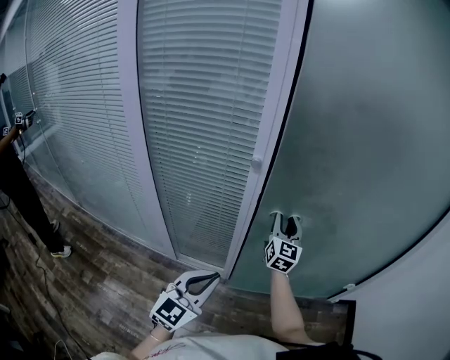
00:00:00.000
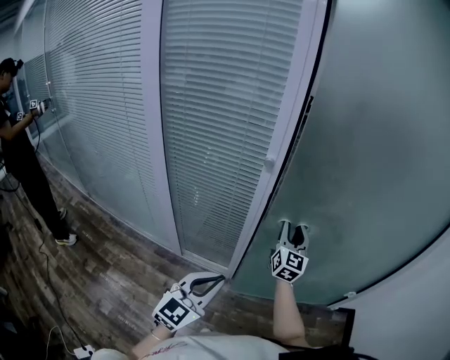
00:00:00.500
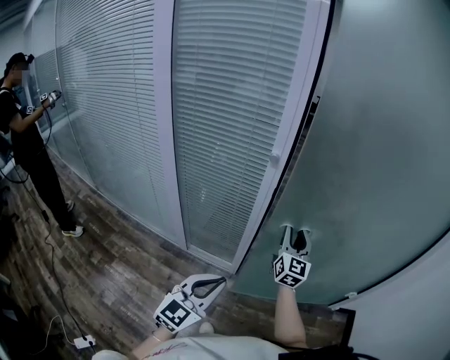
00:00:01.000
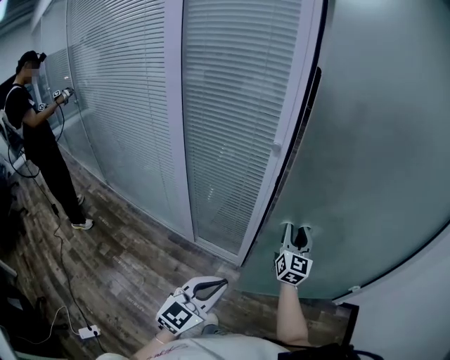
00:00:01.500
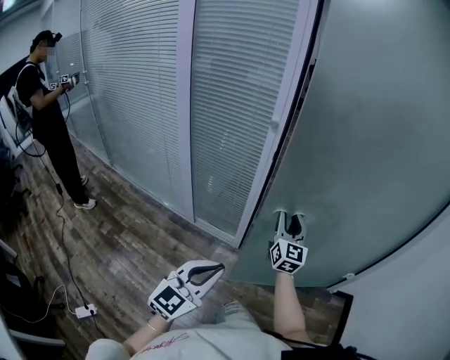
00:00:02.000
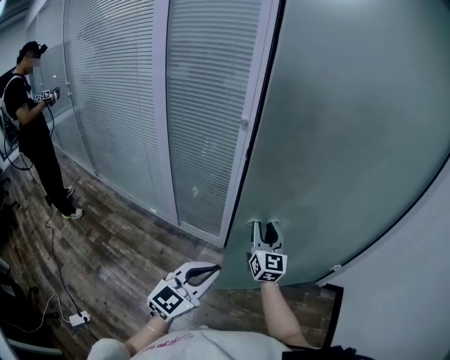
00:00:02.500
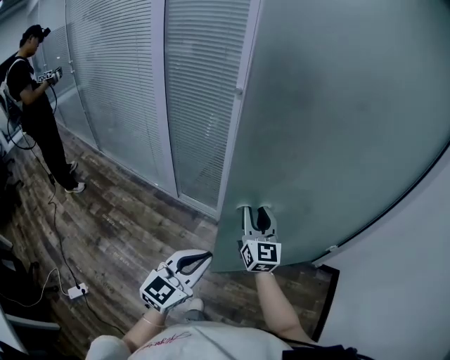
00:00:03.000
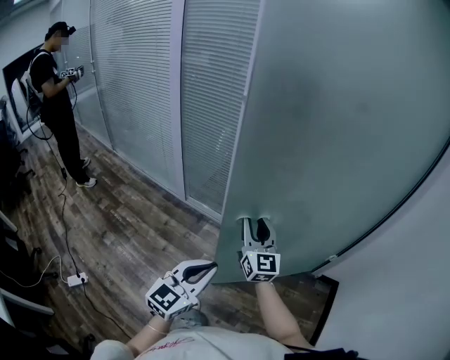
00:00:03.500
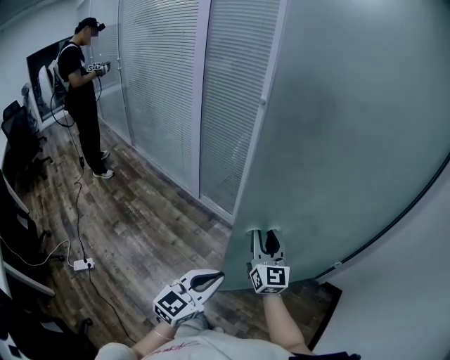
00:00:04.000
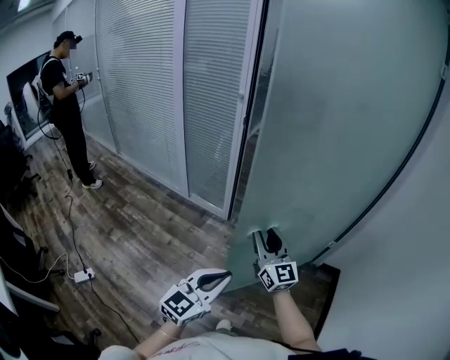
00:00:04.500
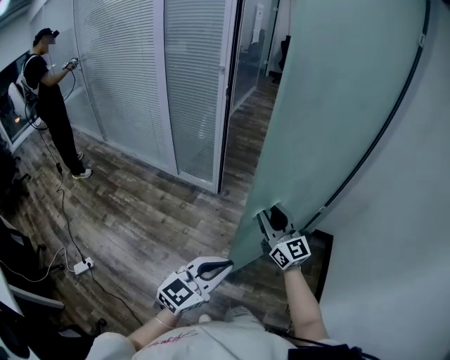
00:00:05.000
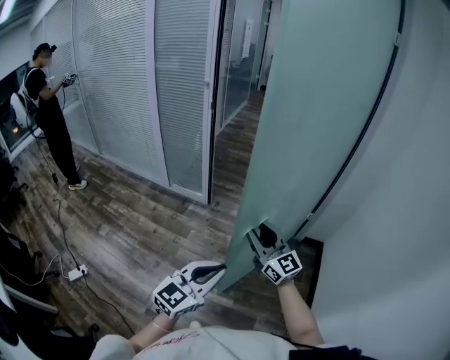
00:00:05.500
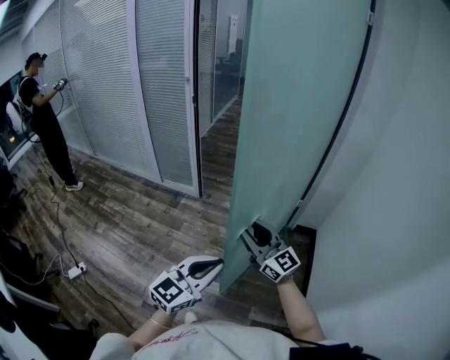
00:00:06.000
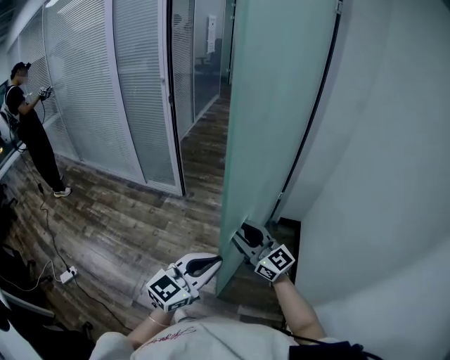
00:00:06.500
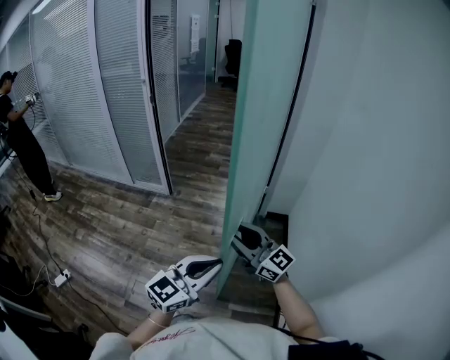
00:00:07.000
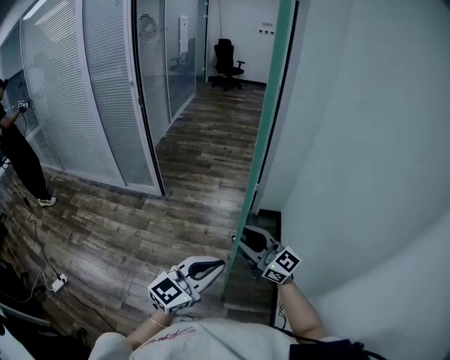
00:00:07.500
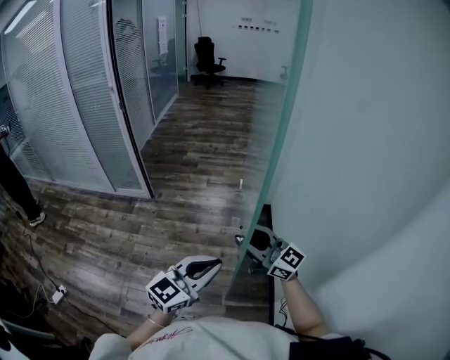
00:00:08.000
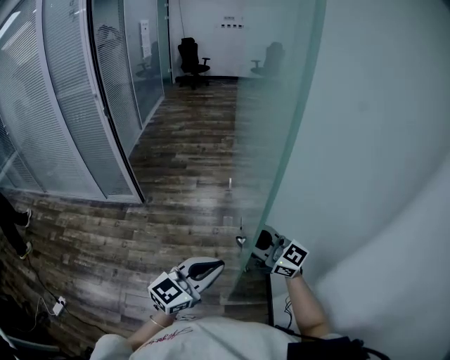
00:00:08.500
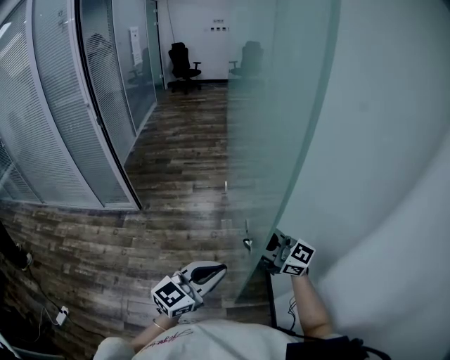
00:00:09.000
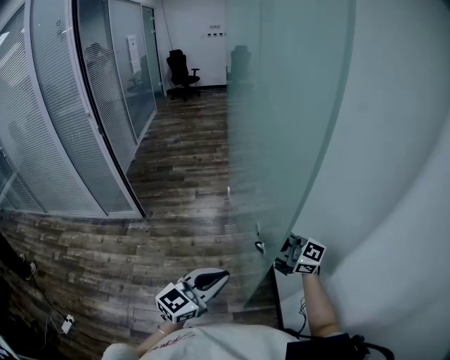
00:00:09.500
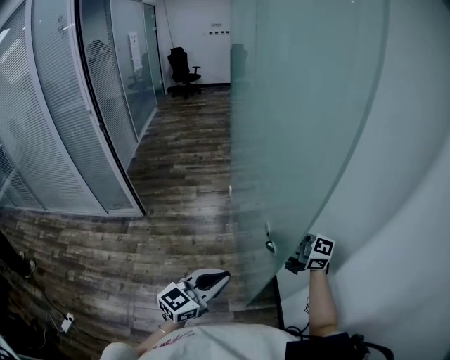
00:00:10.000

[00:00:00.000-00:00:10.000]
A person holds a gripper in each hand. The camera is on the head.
00:00:00.000 to 00:00:02.000: The left gripper heads backward and to the right, covering roughly 20 cm; the right gripper shifts about 20 cm backward.
00:00:02.000 to 00:00:04.000: The left gripper goes some 25 cm backward and to the right, while the right gripper shifts about 25 cm backward, and changes its angle by roughly 20 degrees.
00:00:04.000 to 00:00:06.000: The two grippers go some 30 cm backward and to the right. The left gripper swivels about 20 degrees.
00:00:06.000 to 00:00:08.000: The right gripper is displaced to the right and backward by about 25 cm. The left gripper travels to the right by about 20 cm.
00:00:08.000 to 00:00:10.000: The right gripper goes some 10 cm to the right.

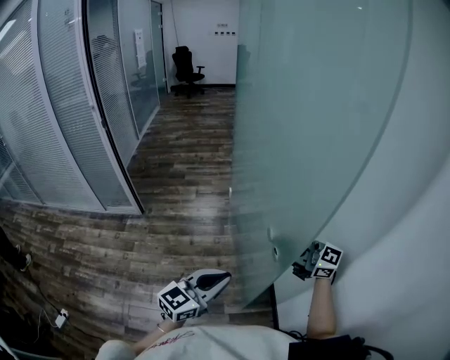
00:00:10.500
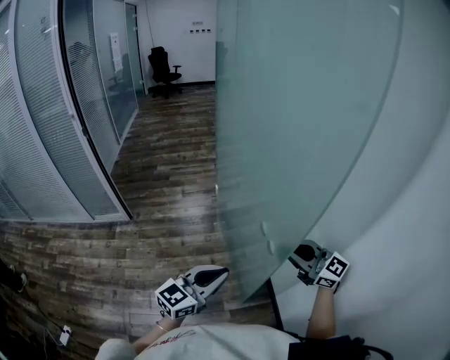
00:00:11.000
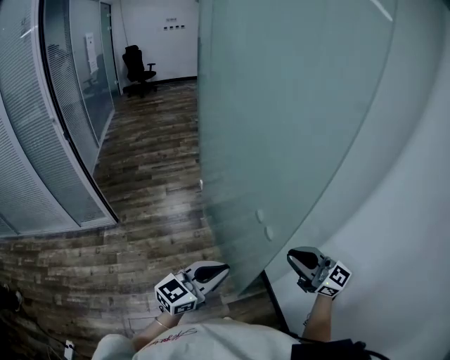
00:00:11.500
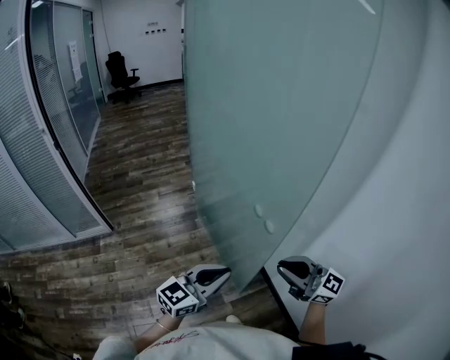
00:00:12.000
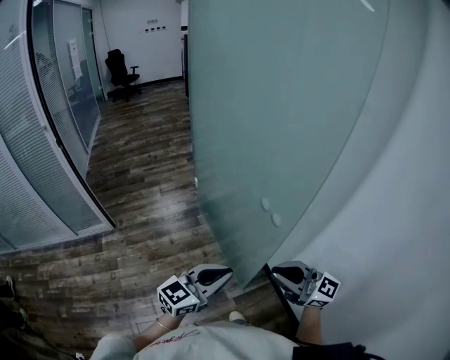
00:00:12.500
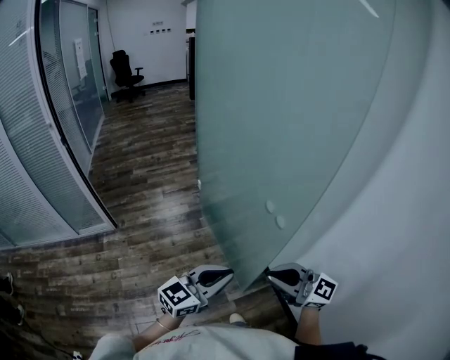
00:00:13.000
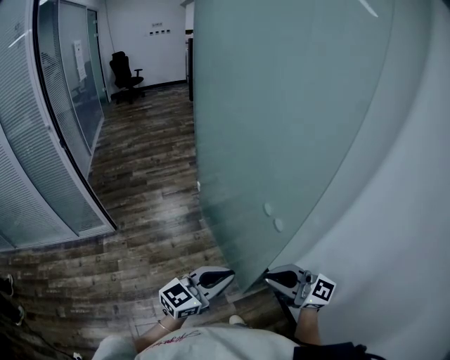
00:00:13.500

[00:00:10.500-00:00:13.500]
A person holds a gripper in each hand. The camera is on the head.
00:00:10.500 to 00:00:12.000: The right gripper moves backward, some 15 cm, changes its angle by about 20 degrees, and closes its fingers; the left gripper turns by roughly 20 degrees.
00:00:12.000 to 00:00:13.500: The right gripper moves about 10 cm.

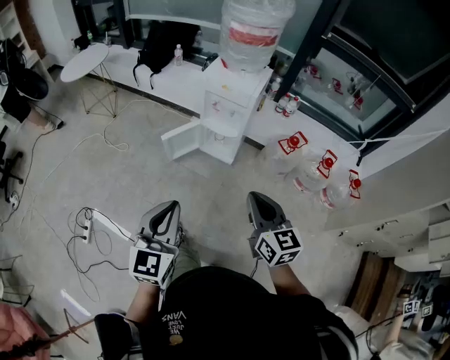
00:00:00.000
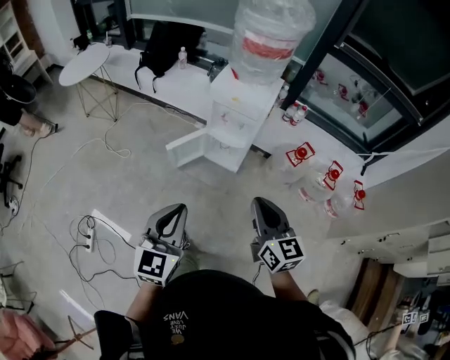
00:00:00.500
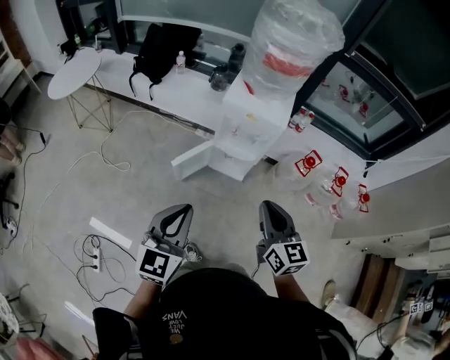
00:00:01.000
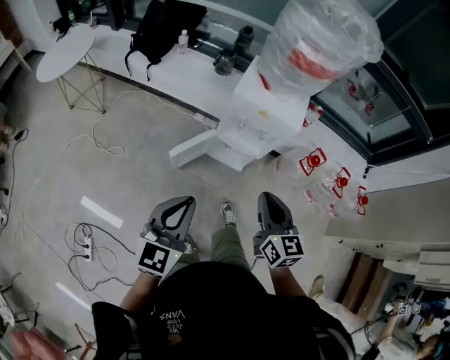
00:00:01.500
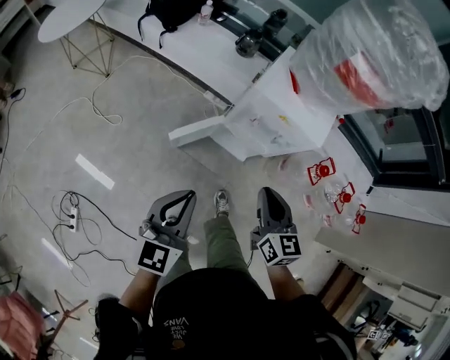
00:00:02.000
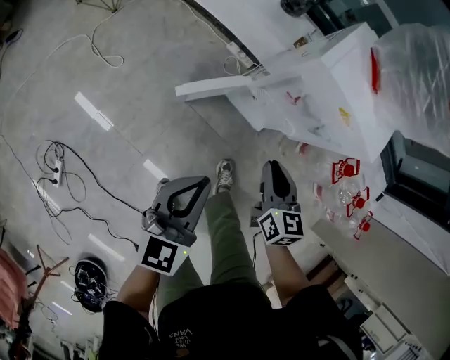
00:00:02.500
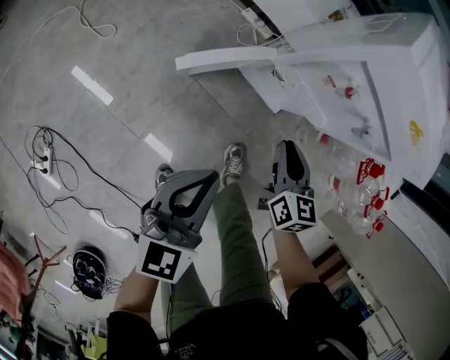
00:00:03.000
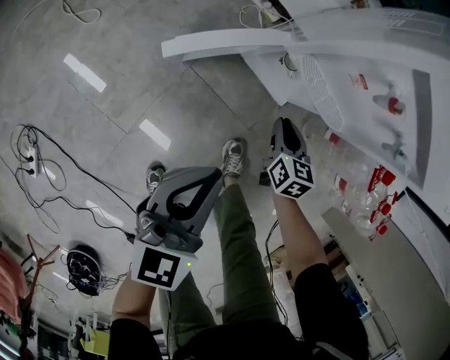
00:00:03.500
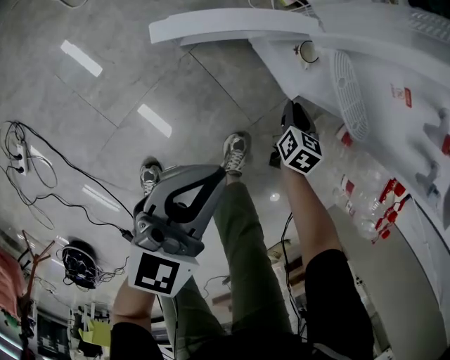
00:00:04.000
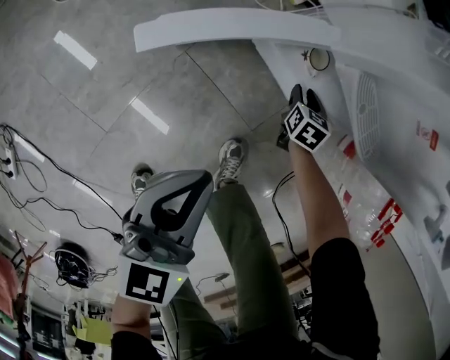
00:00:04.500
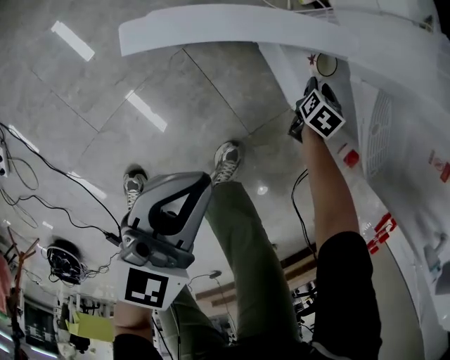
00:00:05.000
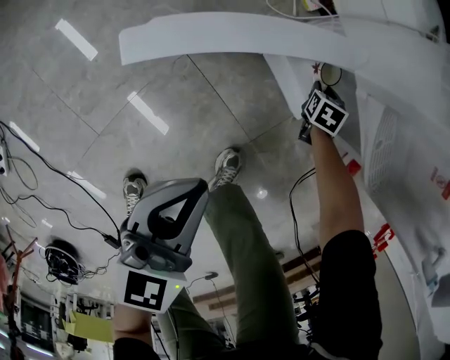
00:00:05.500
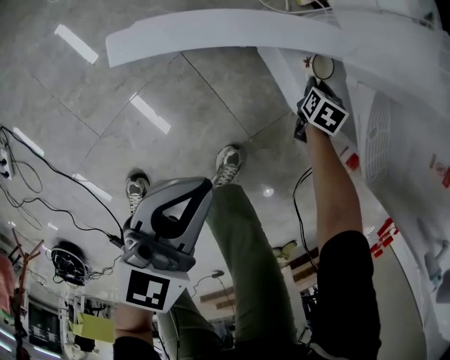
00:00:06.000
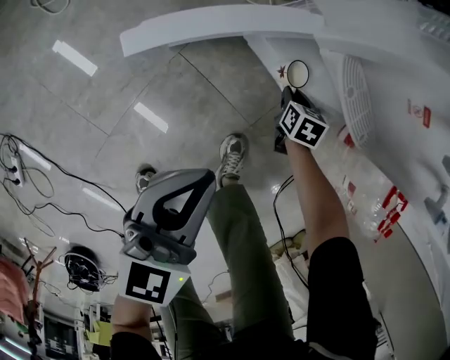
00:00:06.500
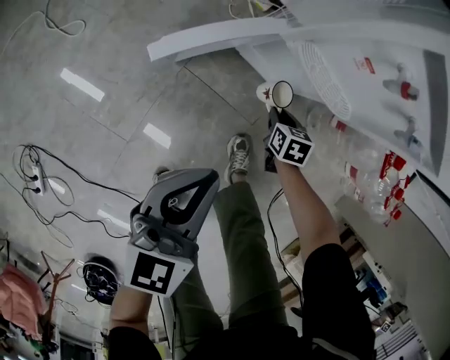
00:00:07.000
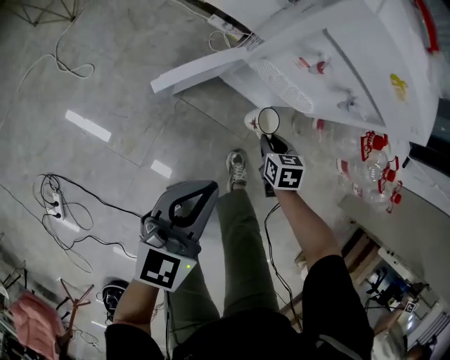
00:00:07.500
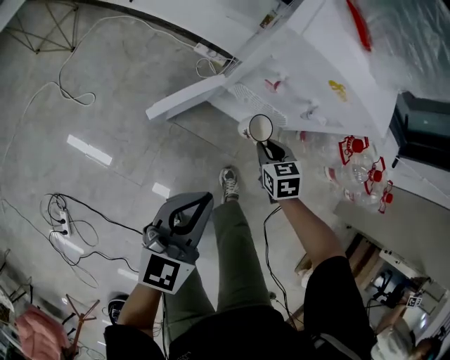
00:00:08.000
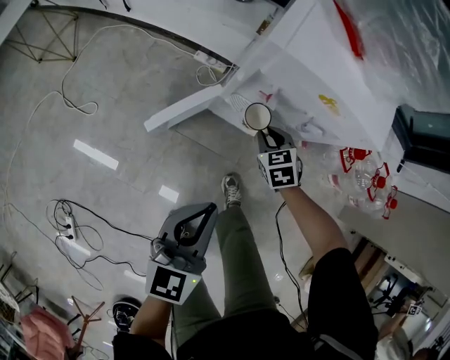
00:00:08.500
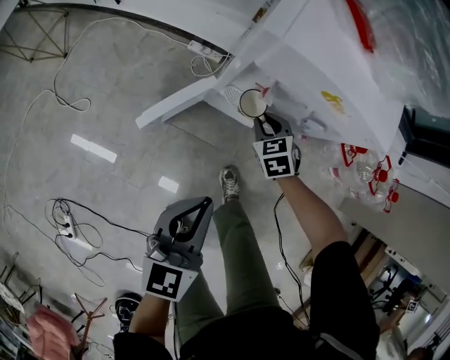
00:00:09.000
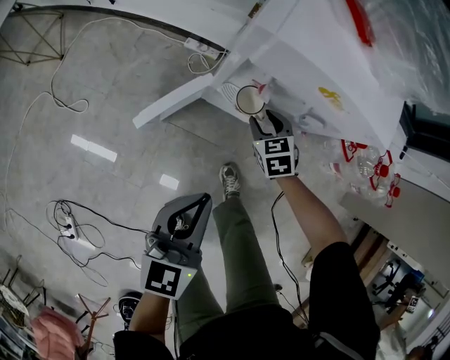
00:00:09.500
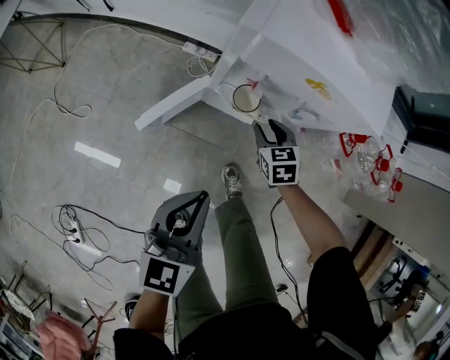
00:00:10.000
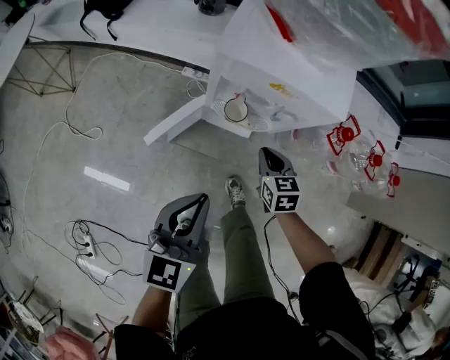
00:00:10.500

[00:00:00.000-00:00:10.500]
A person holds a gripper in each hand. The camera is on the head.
00:00:00.000 to 00:00:02.000: Both grippers move forward and to the left, roughly 40 cm.
00:00:02.000 to 00:00:04.000: The grippers both shift downward by about 60 cm. The right gripper tilts its fingers about 30 degrees downward.
00:00:04.000 to 00:00:06.500: The right gripper shifts approximately 10 cm downward, and reaches about 15 cm forward, then returns.
00:00:06.500 to 00:00:08.500: The grippers both shift upward by some 35 cm. The right gripper changes its angle by roughly 20 degrees.
00:00:08.500 to 00:00:10.500: The left gripper travels upward by roughly 5 cm, while the right gripper shifts approximately 10 cm upward, backward and to the right, and swivels roughly 30 degrees.

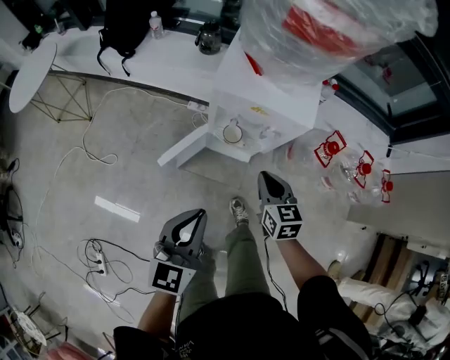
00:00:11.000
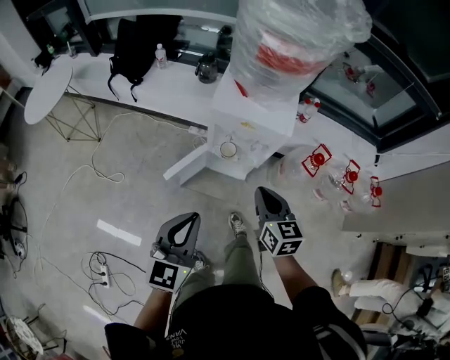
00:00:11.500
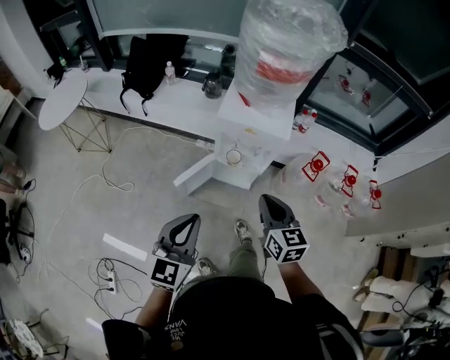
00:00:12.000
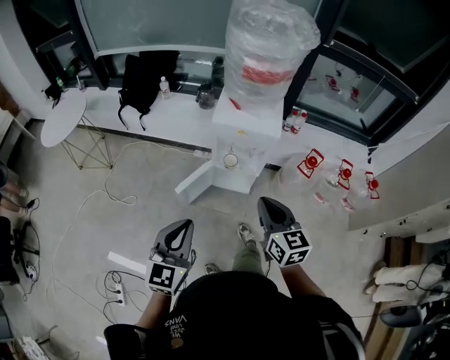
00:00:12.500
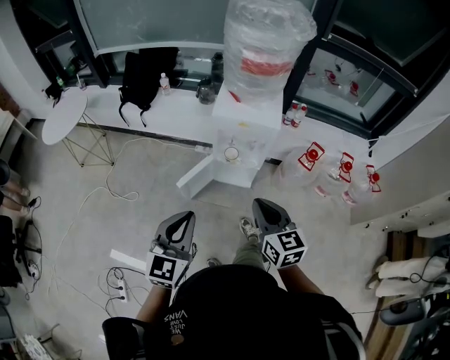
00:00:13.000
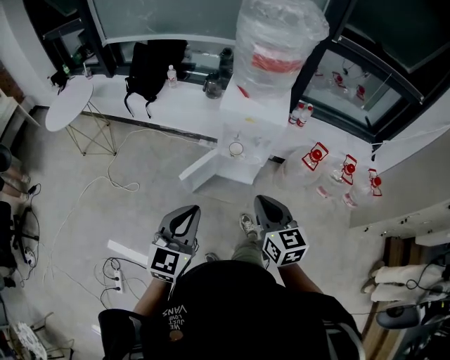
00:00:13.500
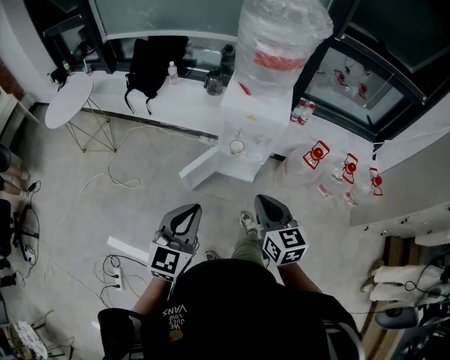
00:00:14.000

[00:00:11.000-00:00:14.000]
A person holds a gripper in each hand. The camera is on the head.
00:00:11.000 to 00:00:12.500: The right gripper shifts roughly 30 cm upward and backward; the left gripper is displaced backward and upward by some 20 cm.
00:00:12.500 to 00:00:14.000: The right gripper shifts by roughly 5 cm.
